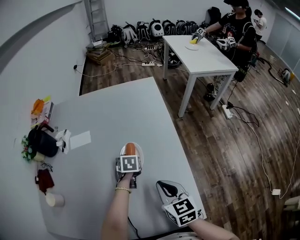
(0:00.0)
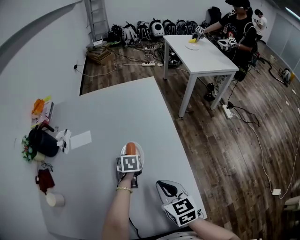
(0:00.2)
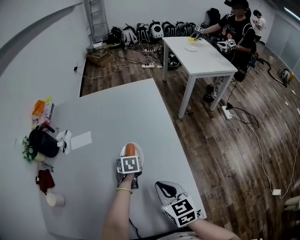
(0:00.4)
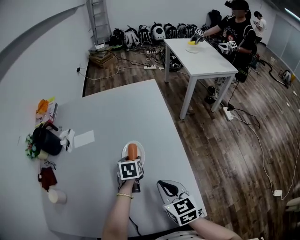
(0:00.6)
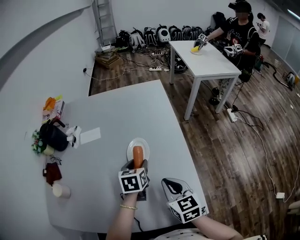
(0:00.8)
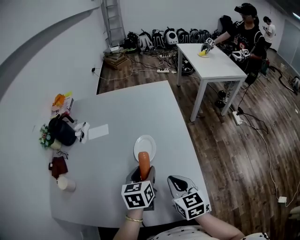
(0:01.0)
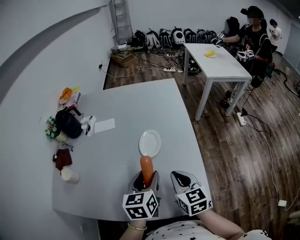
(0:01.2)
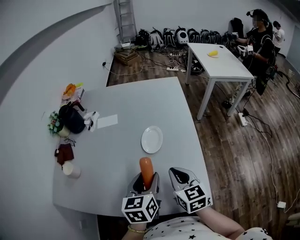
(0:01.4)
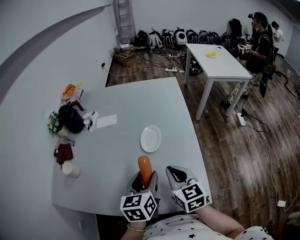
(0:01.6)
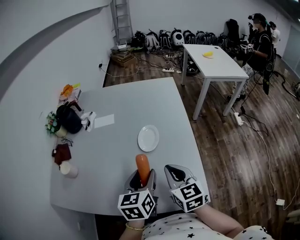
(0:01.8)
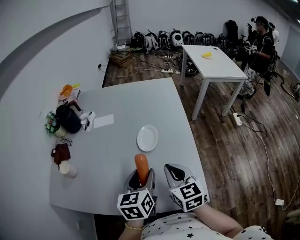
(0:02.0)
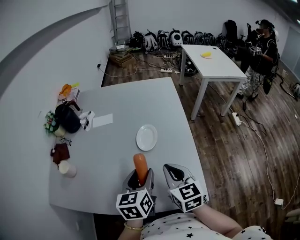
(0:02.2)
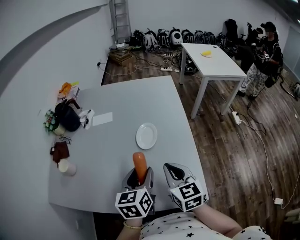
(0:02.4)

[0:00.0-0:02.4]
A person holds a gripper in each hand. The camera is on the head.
0:00.0 to 0:01.2: The left gripper shifts approximately 30 cm backward and upward, and tips its fingers upward by some 30 degrees; the right gripper shifts approximately 5 cm backward.
0:01.2 to 0:02.4: The grippers make only small movements.

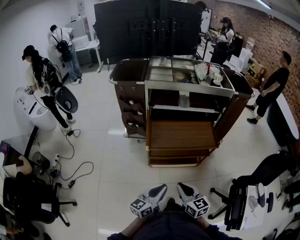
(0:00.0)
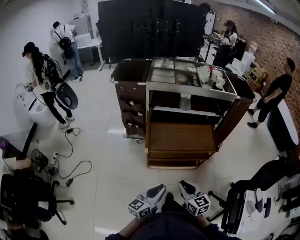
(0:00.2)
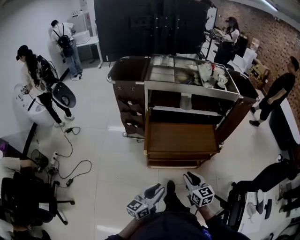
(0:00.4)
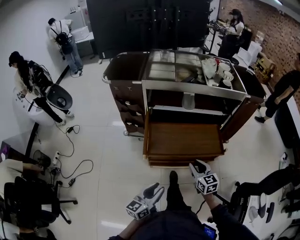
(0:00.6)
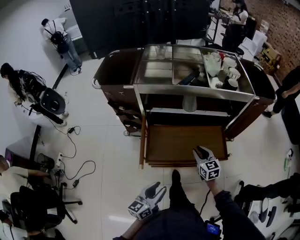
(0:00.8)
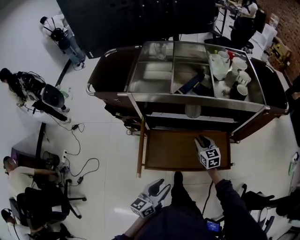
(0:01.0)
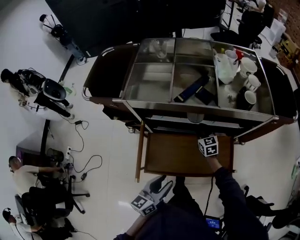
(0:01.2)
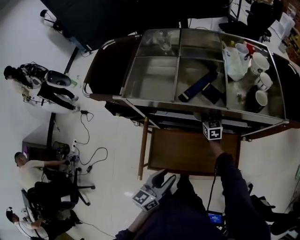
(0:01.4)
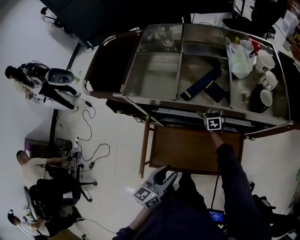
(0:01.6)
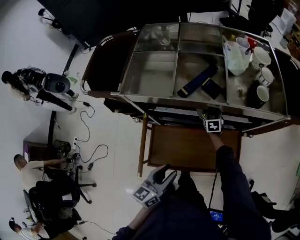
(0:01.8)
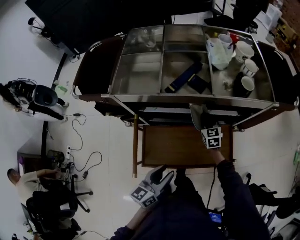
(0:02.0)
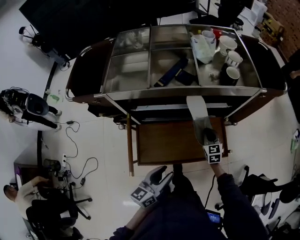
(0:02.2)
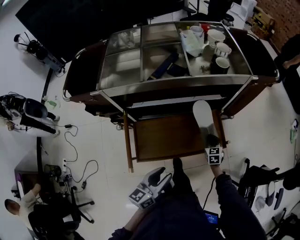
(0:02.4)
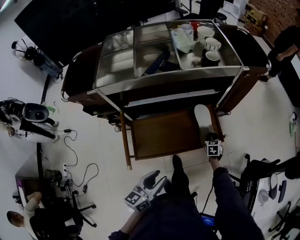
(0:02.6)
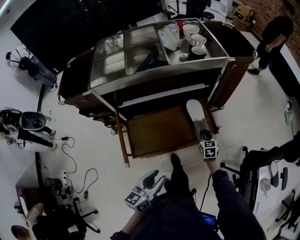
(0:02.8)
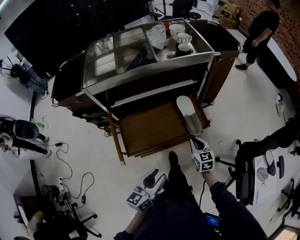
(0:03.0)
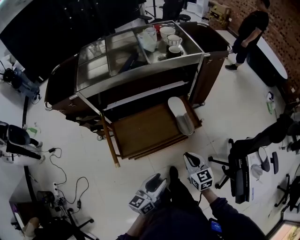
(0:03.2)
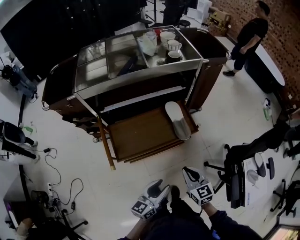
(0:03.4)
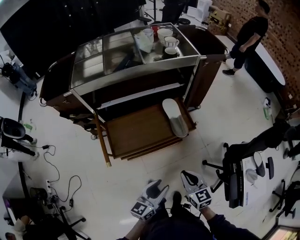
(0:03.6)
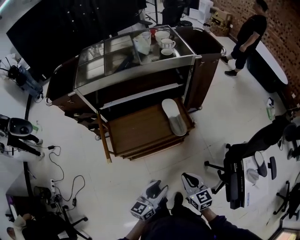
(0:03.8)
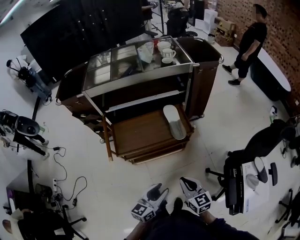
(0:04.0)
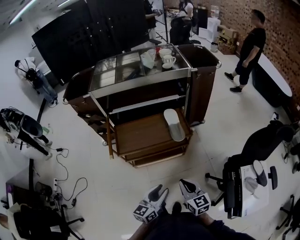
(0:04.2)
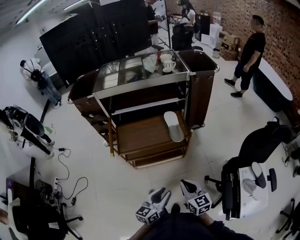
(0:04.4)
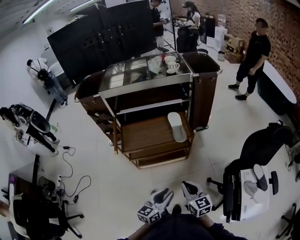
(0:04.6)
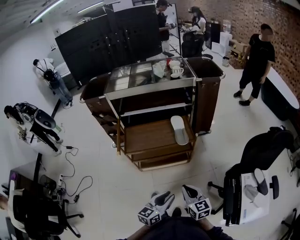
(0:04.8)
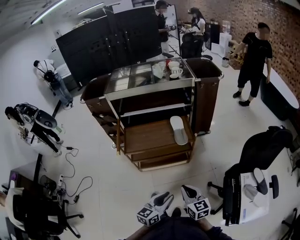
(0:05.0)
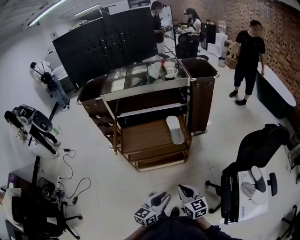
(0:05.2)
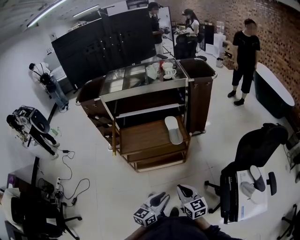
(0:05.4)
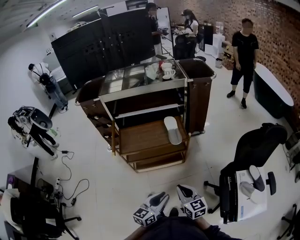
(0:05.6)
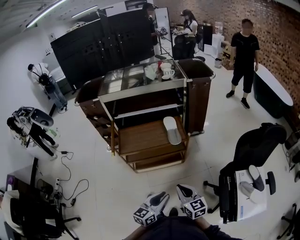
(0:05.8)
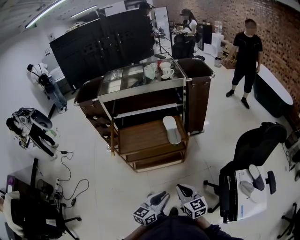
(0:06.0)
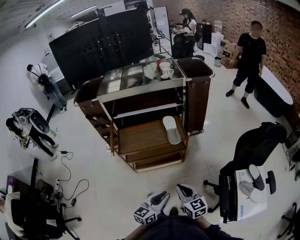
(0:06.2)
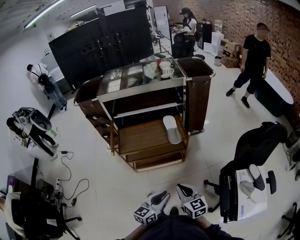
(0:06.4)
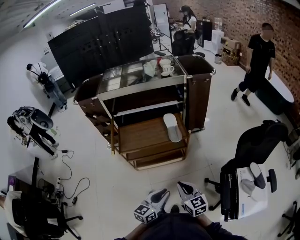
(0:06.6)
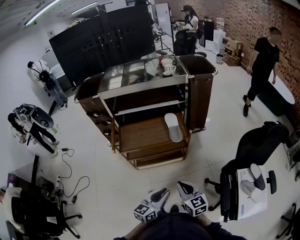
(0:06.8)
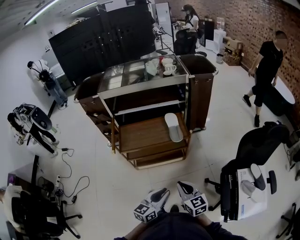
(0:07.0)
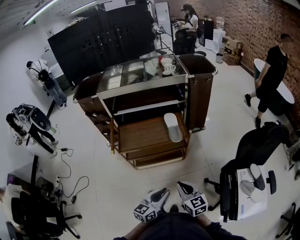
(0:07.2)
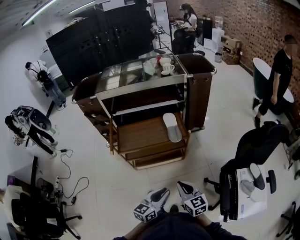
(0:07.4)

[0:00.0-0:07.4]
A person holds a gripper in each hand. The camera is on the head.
0:00.0 to 0:01.4: The two grippers travel together, forward, approximately 60 cm. The right gripper opens up, while the left gripper opens up.
0:01.4 to 0:03.0: The left gripper heads backward and to the right, covering roughly 20 cm, and swivels some 20 degrees. Meanwhile the right gripper heads backward and to the right, covering about 50 cm, and swivels about 20 degrees.
0:03.0 to 0:04.4: The left gripper shifts roughly 25 cm to the right and backward, while the right gripper shifts some 30 cm backward.
0:04.4 to 0:06.0: The two grippers go some 5 cm backward.
0:06.0 to 0:07.4: The grippers make only small movements.

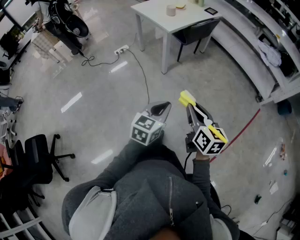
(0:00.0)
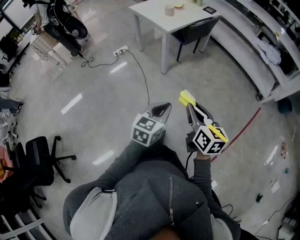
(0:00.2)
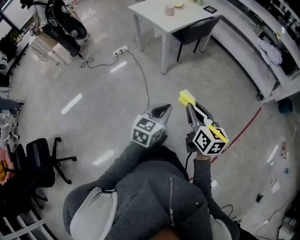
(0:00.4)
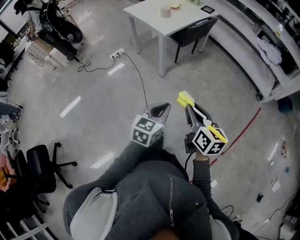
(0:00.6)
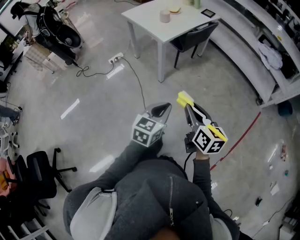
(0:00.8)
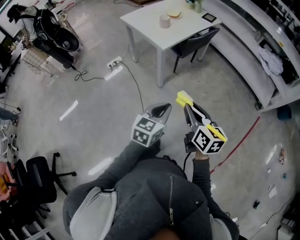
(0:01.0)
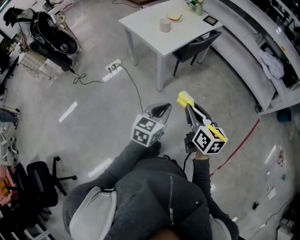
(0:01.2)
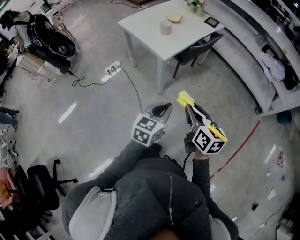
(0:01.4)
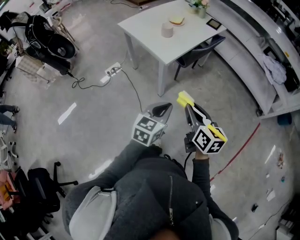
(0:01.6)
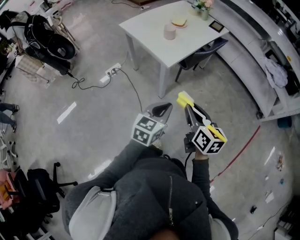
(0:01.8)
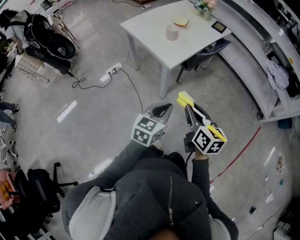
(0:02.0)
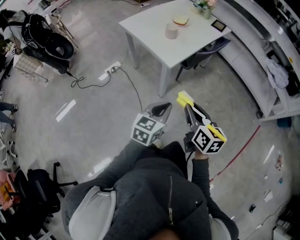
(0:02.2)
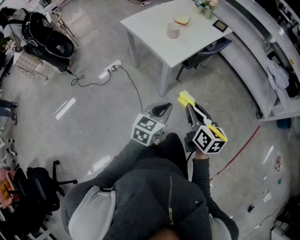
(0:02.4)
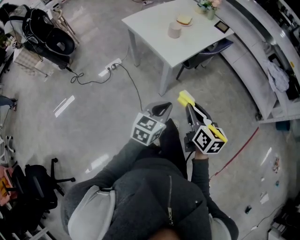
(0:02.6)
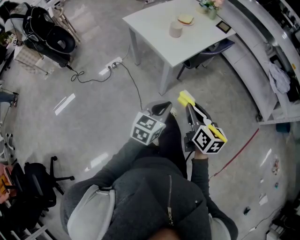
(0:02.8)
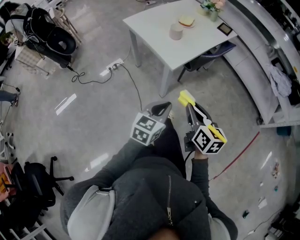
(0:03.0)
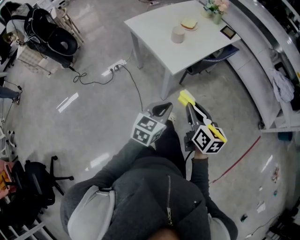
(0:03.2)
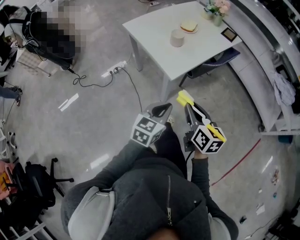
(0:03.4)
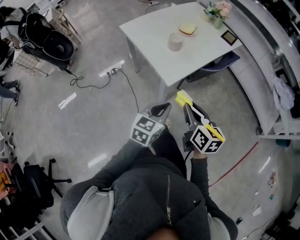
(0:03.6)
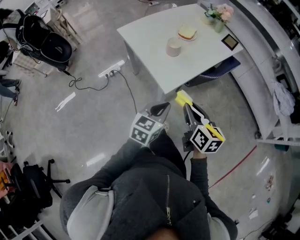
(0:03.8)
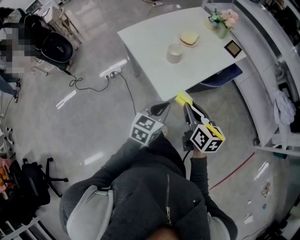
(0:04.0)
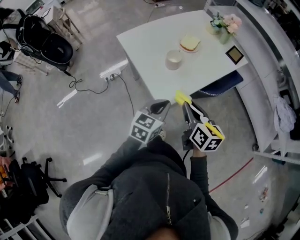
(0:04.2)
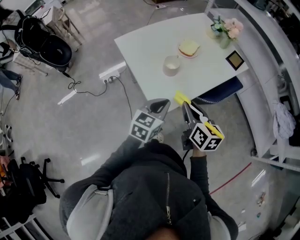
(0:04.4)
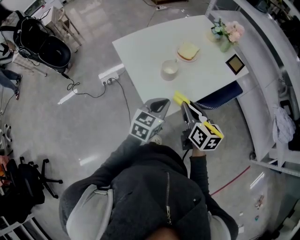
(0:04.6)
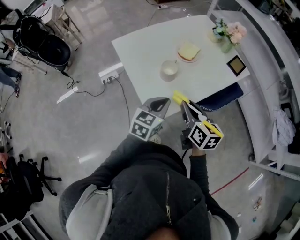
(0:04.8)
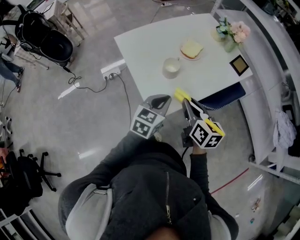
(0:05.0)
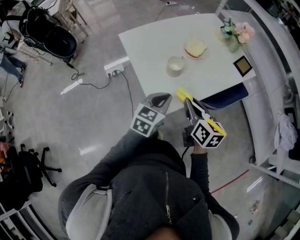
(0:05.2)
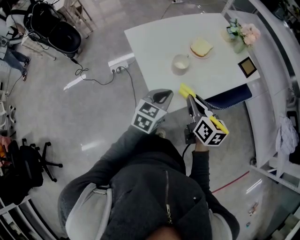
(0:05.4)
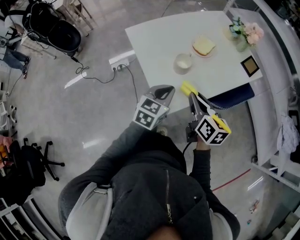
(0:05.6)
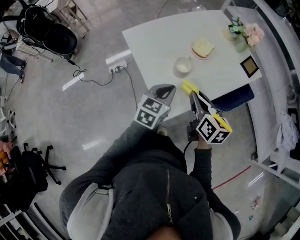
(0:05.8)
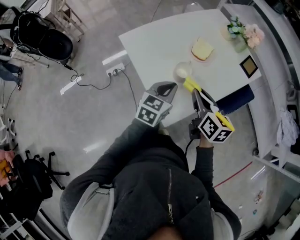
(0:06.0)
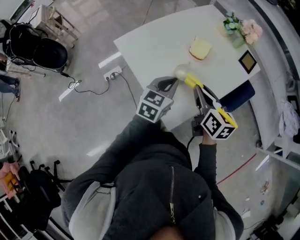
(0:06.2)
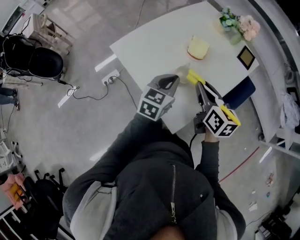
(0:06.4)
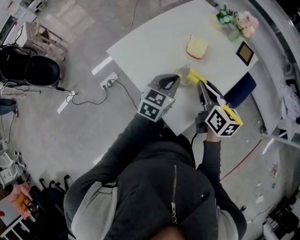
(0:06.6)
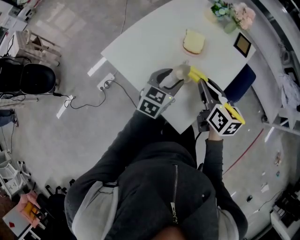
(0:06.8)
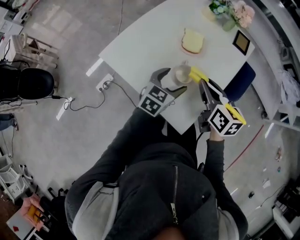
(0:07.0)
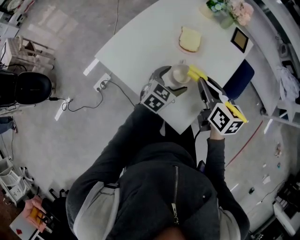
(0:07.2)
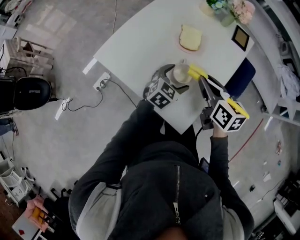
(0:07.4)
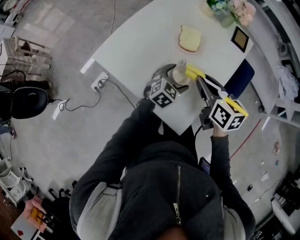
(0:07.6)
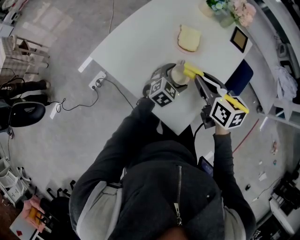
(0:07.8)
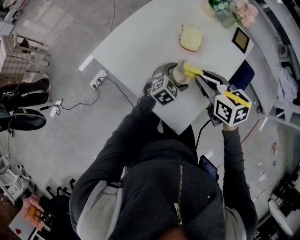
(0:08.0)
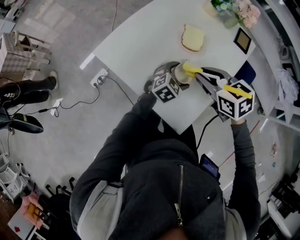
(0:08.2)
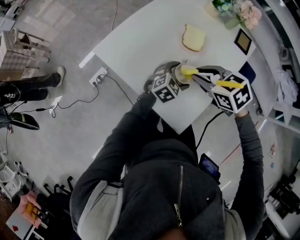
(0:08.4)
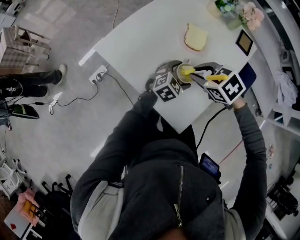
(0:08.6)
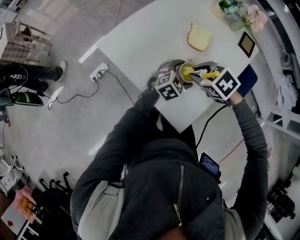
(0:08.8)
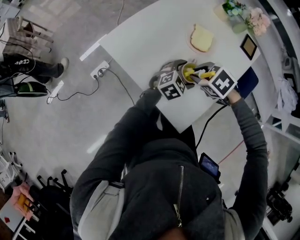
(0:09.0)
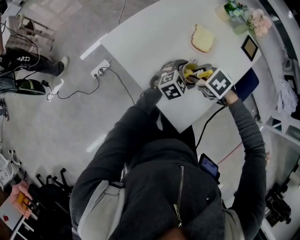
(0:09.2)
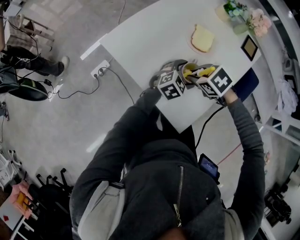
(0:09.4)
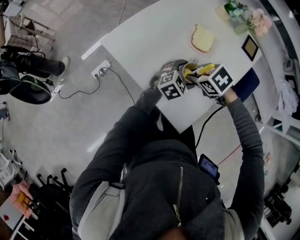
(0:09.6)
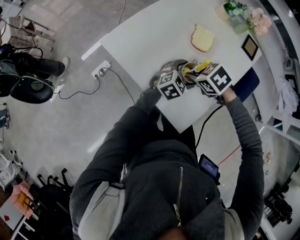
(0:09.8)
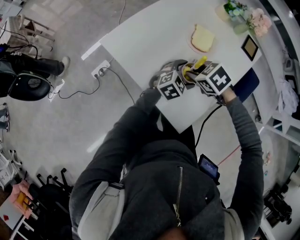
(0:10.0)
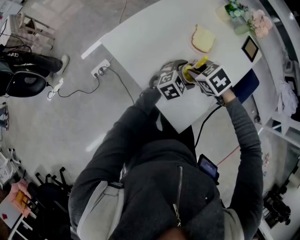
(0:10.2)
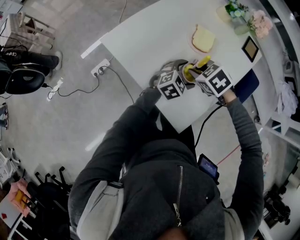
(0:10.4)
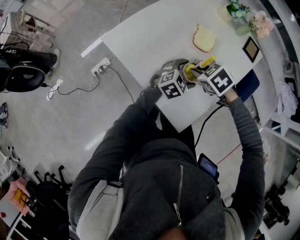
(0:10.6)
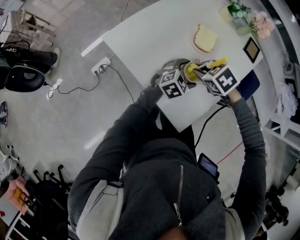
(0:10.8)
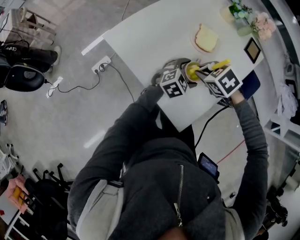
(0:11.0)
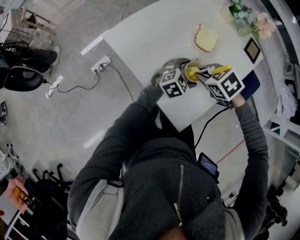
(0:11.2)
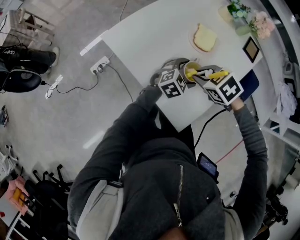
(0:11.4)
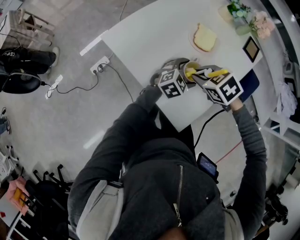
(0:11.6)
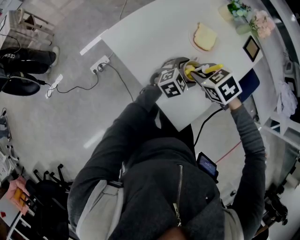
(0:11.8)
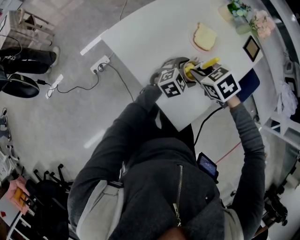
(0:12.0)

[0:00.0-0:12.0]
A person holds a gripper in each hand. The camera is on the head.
0:00.0 to 0:01.6: The two grippers go about 35 cm forward.
0:01.6 to 0:03.0: The two grippers go roughly 5 cm forward.
0:03.0 to 0:04.4: Both grippers travel together forward, about 30 cm.
0:04.4 to 0:06.0: The two grippers go roughly 10 cm forward.
0:06.0 to 0:07.6: The left gripper is displaced downward and forward by some 15 cm, rotates approximately 40 degrees, and opens its fingers. Meanwhile the right gripper heads forward, covering approximately 10 cm.
0:07.6 to 0:09.0: The right gripper travels downward by roughly 10 cm, and tips its fingers downward by some 40 degrees.
0:09.0 to 0:12.0: The grippers make only small movements.

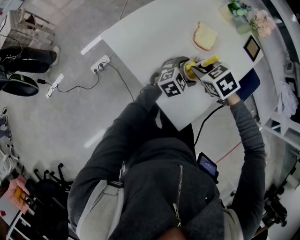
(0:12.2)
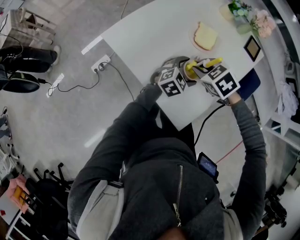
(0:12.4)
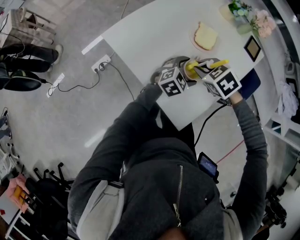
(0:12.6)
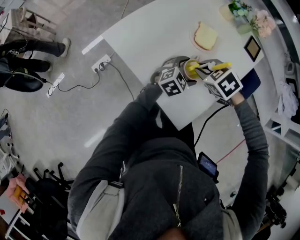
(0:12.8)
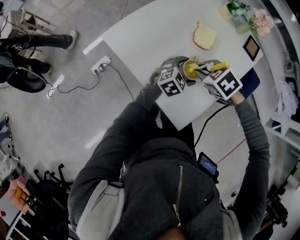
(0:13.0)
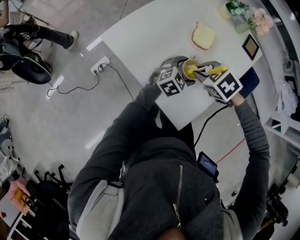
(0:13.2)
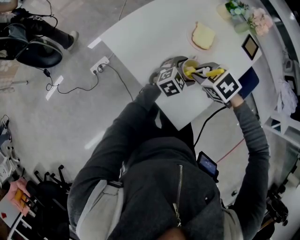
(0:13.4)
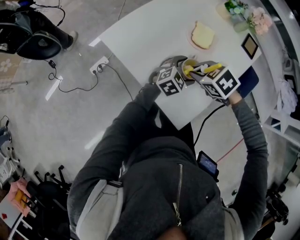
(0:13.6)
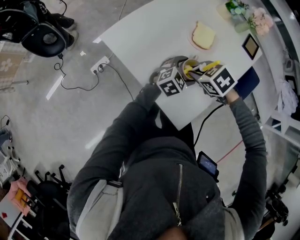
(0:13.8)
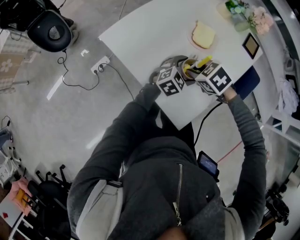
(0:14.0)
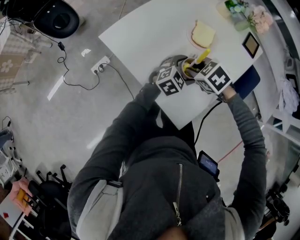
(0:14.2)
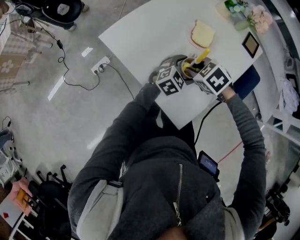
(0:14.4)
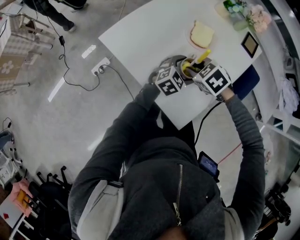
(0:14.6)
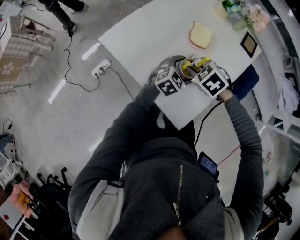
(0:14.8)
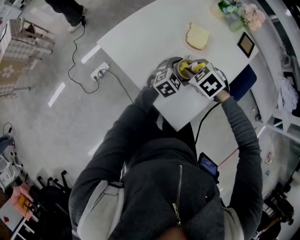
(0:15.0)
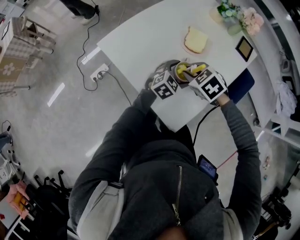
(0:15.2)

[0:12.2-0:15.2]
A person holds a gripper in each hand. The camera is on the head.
0:12.2 to 0:15.2: There are only small adjustments of the grippers.
